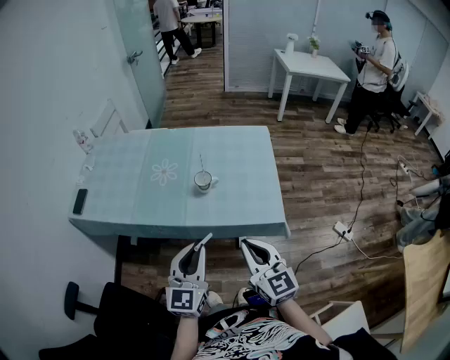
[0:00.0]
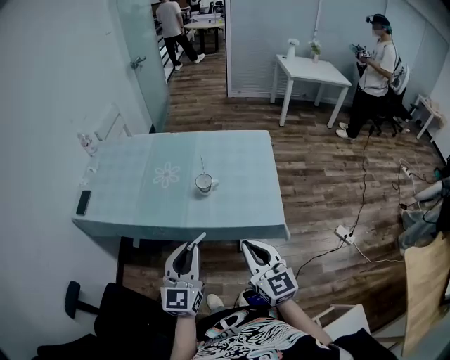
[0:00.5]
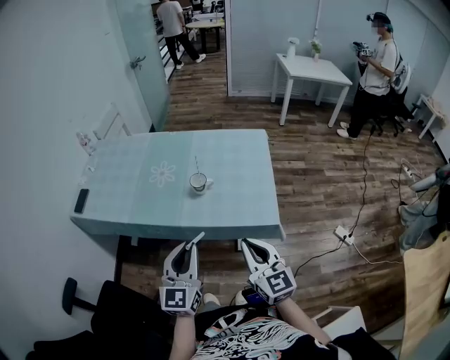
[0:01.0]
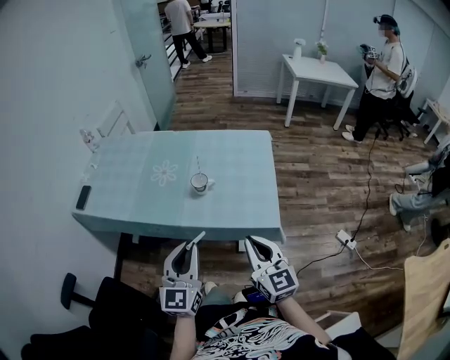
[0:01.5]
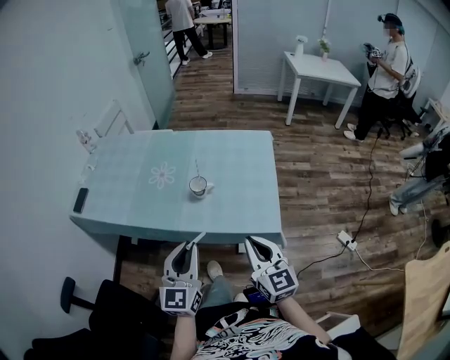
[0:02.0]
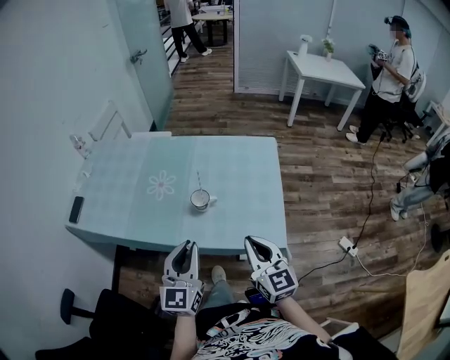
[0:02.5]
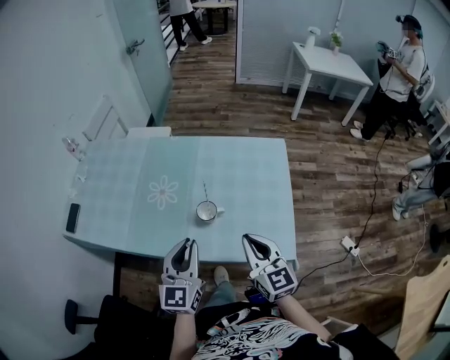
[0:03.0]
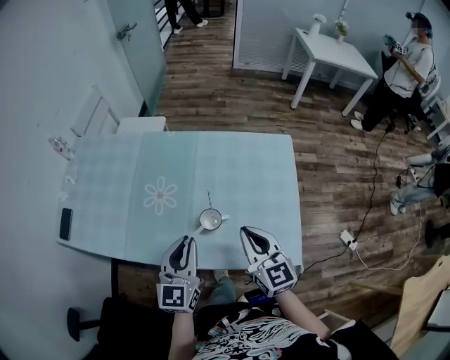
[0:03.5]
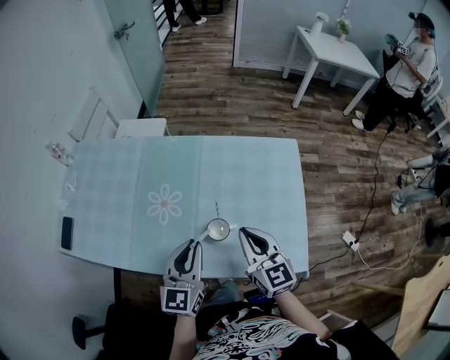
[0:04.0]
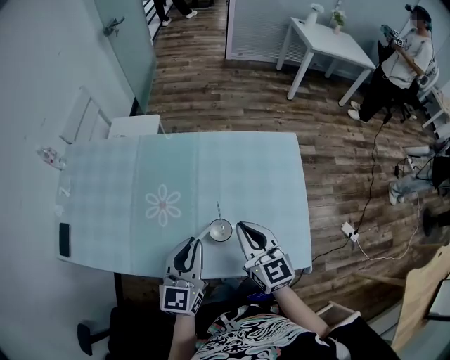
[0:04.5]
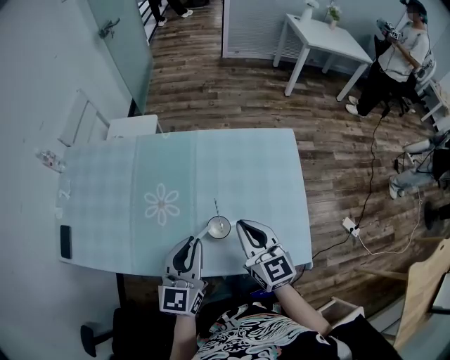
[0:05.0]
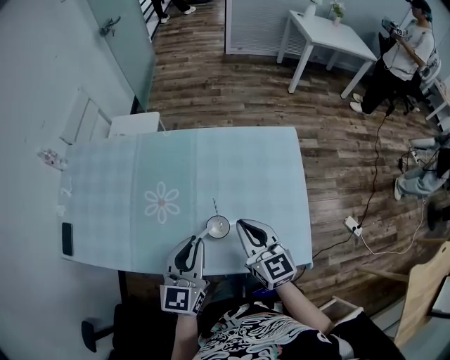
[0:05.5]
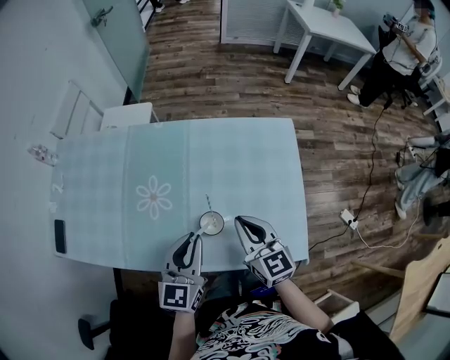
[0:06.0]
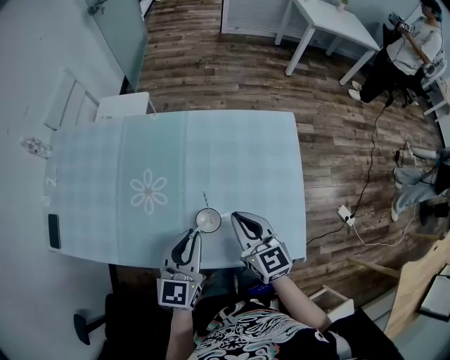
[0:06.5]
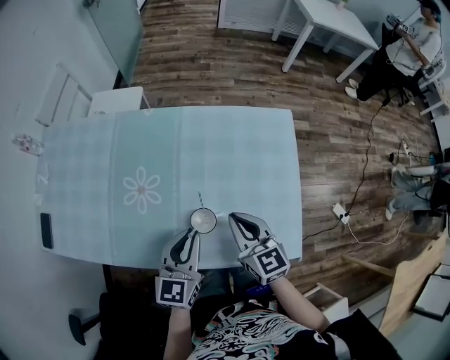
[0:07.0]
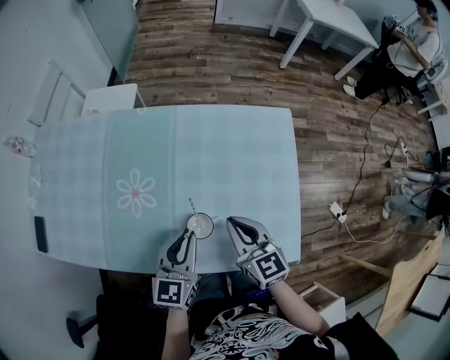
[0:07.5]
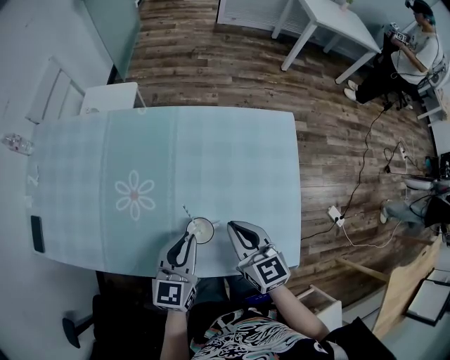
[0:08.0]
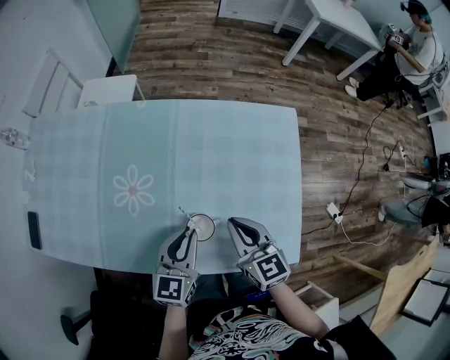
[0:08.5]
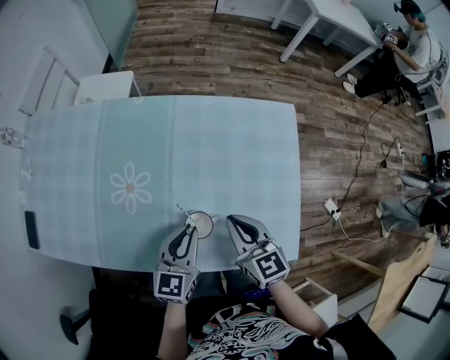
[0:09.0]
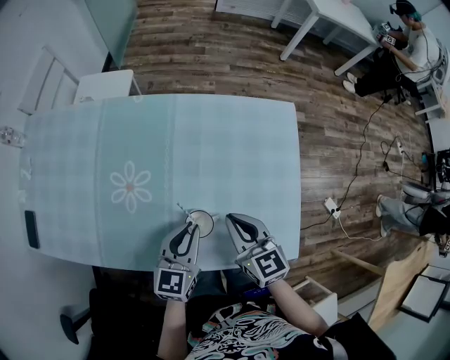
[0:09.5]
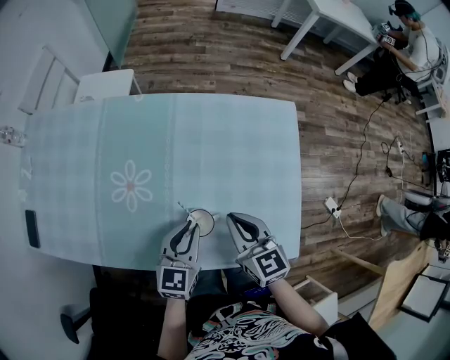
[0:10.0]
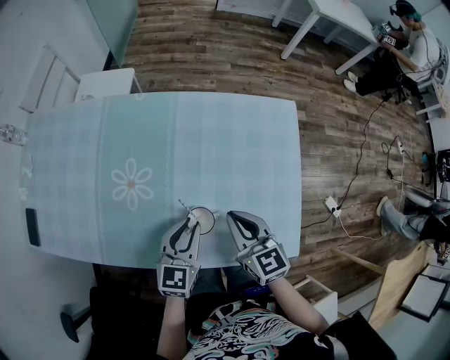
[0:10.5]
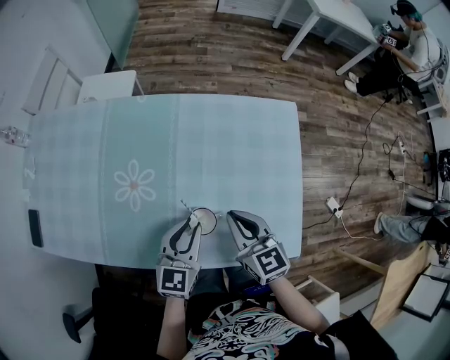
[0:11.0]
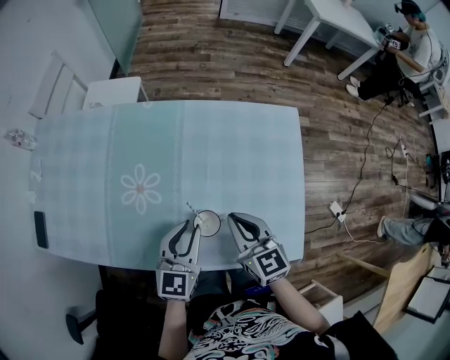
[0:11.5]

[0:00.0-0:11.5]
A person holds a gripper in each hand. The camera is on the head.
0:00.0 to 0:02.0: The right gripper goes roughly 5 cm to the right.
0:02.0 to 0:04.0: The grippers both shift forward by about 25 cm.
0:04.0 to 0:06.0: The grippers stay close to where they were, moving slightly.
0:06.0 to 0:07.5: The left gripper travels downward by some 5 cm.
0:07.5 to 0:11.5: The grippers move only a little.

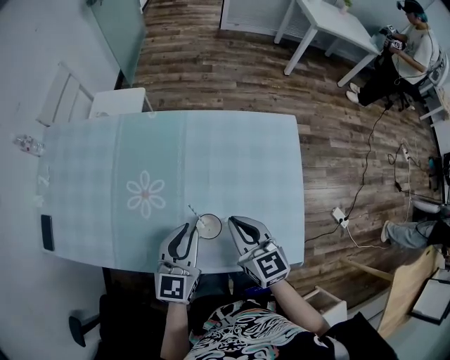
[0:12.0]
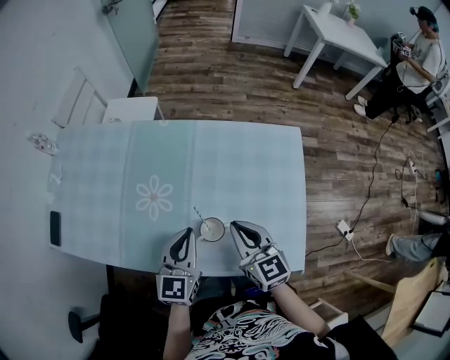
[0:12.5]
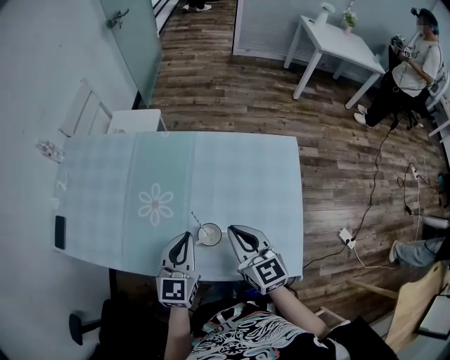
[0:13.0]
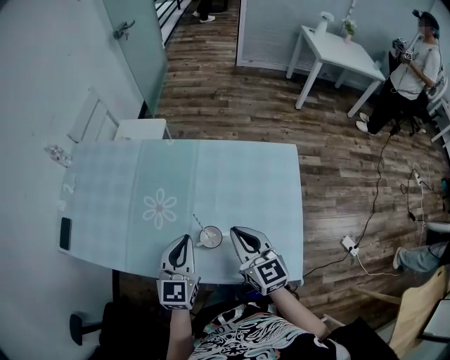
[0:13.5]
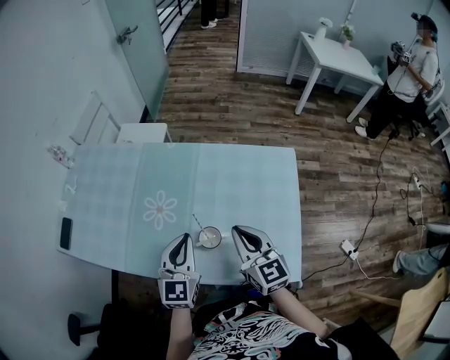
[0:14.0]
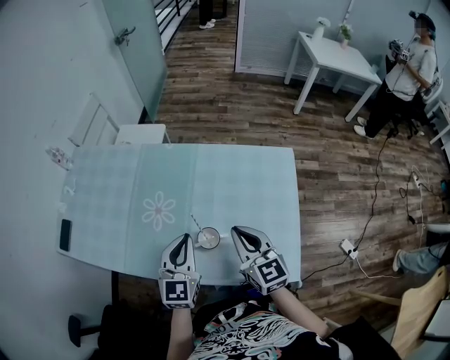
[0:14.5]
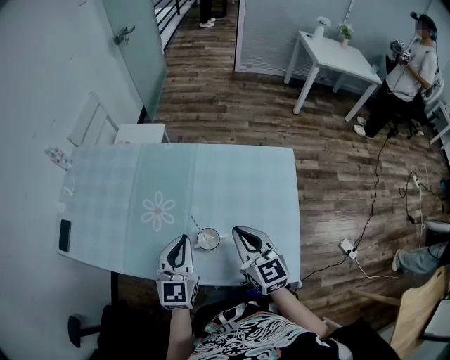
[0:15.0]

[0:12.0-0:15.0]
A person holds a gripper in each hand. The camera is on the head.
0:12.0 to 0:13.5: The right gripper ends up some 5 cm from where it was.
0:13.5 to 0:15.0: There are only small adjustments of the grippers.

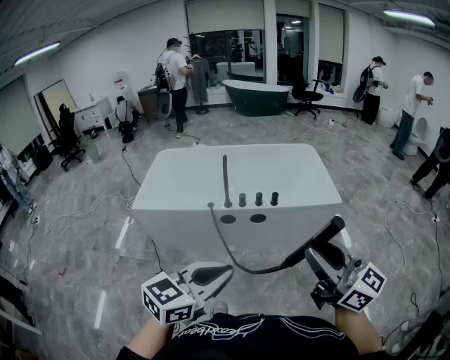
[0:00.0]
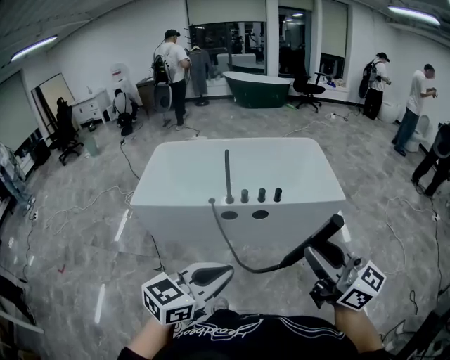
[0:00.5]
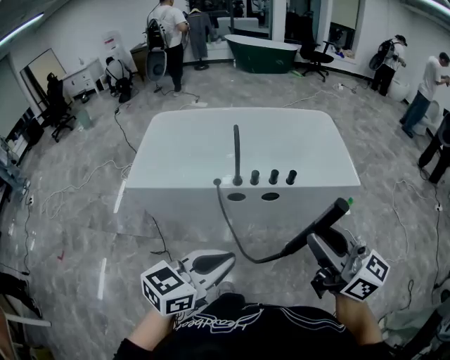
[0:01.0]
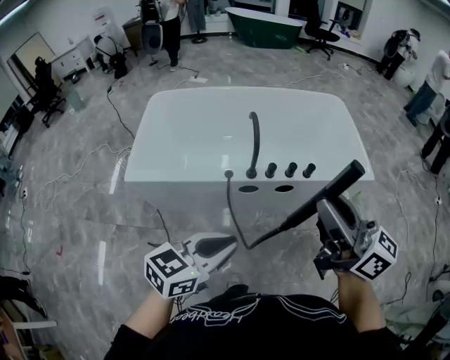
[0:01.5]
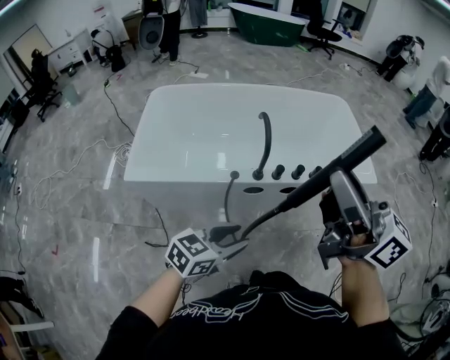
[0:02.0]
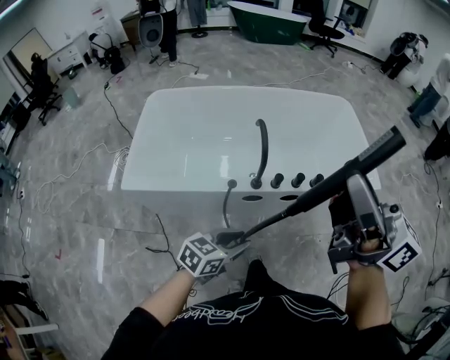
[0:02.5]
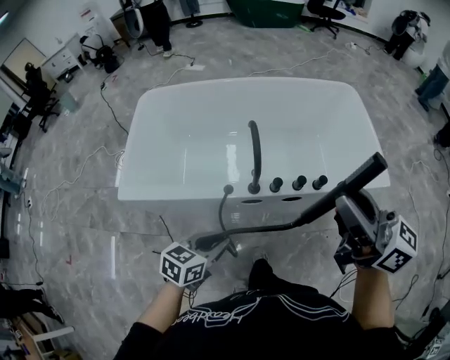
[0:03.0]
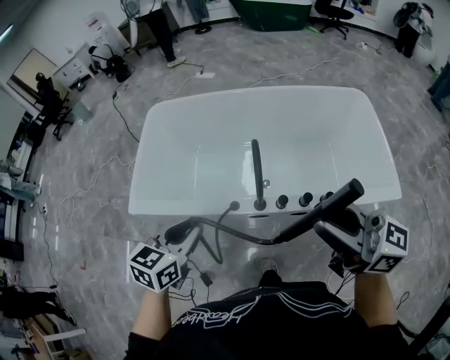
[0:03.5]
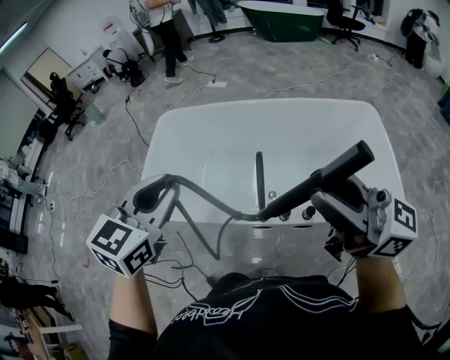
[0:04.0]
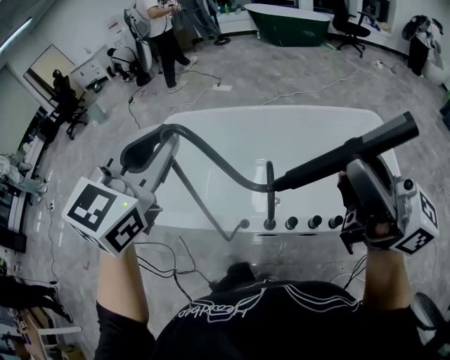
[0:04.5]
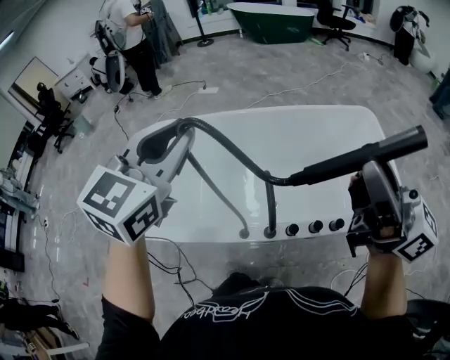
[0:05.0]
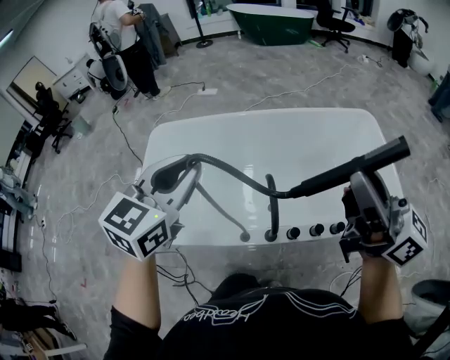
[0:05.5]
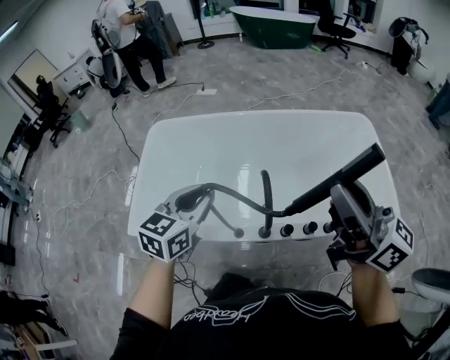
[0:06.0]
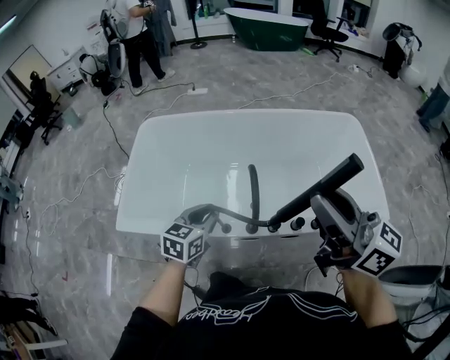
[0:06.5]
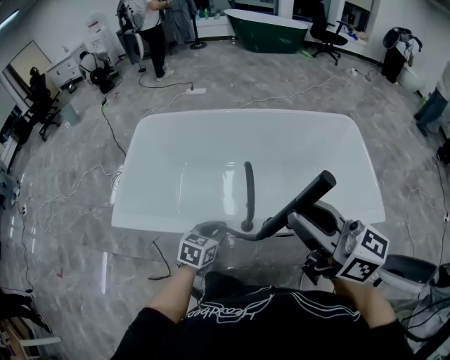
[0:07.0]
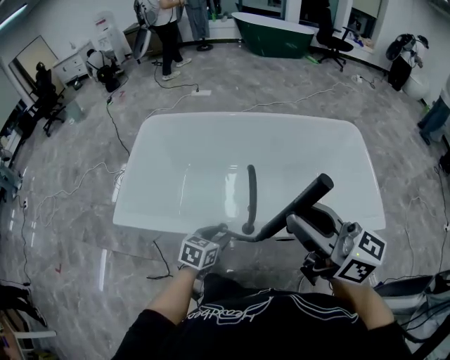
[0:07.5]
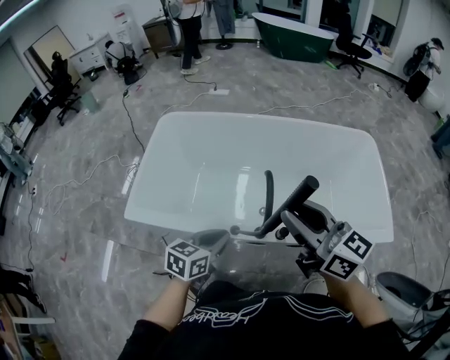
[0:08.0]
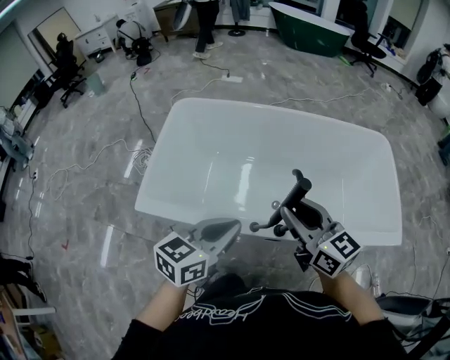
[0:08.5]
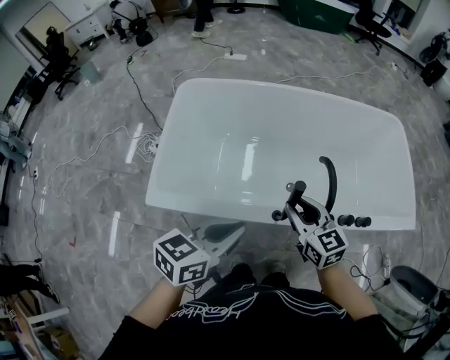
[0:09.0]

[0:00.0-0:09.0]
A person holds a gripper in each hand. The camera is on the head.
0:00.0 to 0:02.0: The right gripper is displaced forward and to the left by about 35 cm. The left gripper is displaced forward, downward and to the left by some 35 cm, turns by approximately 20 degrees, and opens.
0:02.0 to 0:04.5: The left gripper moves roughly 40 cm, and changes its angle by about 50 degrees. The right gripper reaches about 10 cm downward, then returns.
0:04.5 to 0:07.0: The right gripper goes approximately 15 cm downward, and changes its angle by roughly 20 degrees. Meanwhile the left gripper is displaced downward by approximately 40 cm, and turns by approximately 40 degrees.
0:07.0 to 0:09.0: The right gripper is displaced downward and to the left by roughly 30 cm, and rotates about 30 degrees; the left gripper shifts approximately 20 cm upward and to the left, and changes its angle by some 20 degrees.

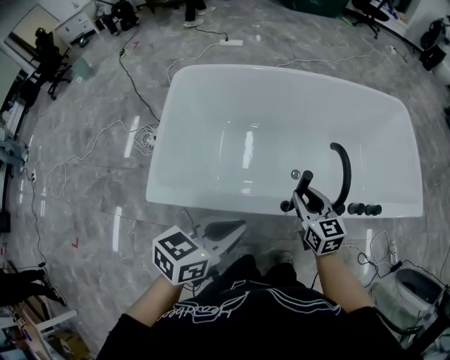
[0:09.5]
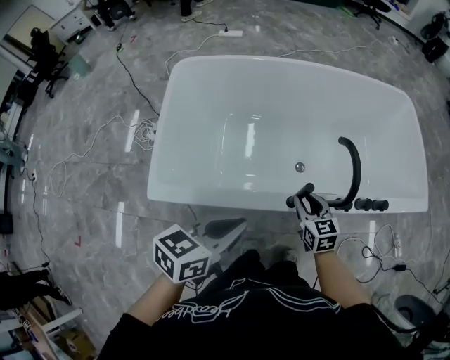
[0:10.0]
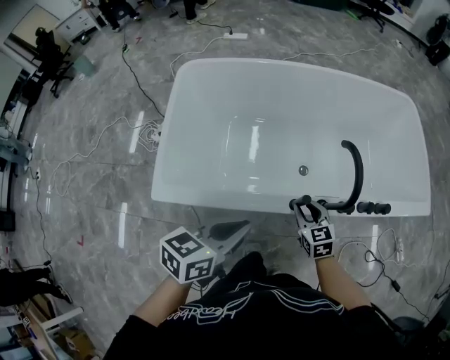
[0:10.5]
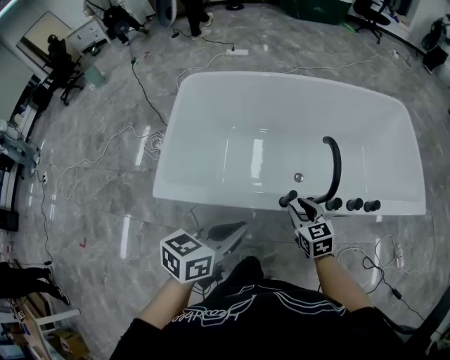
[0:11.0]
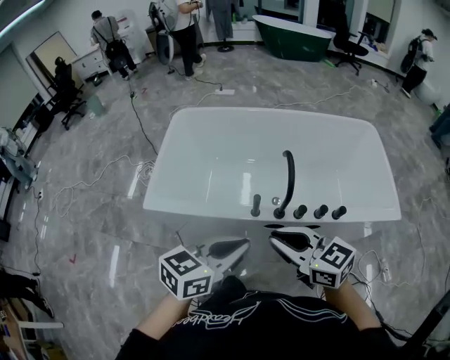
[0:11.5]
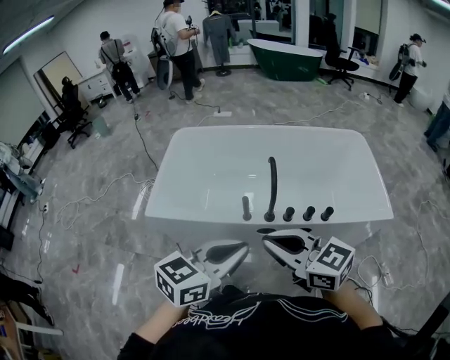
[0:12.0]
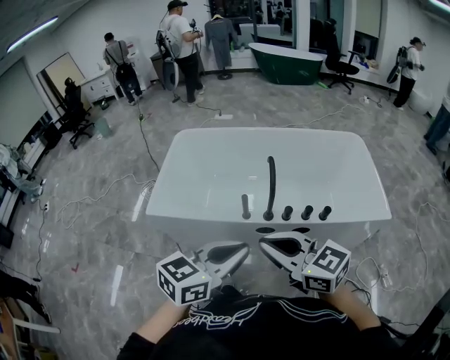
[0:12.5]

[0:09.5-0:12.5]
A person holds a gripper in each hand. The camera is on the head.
0:09.5 to 0:11.0: The right gripper is displaced backward by some 5 cm.
0:11.0 to 0:12.5: The left gripper goes roughly 25 cm backward, to the right and upward, and turns by roughly 20 degrees. Meanwhile the right gripper goes approximately 35 cm upward and backward, swivels roughly 40 degrees, and closes its fingers.
